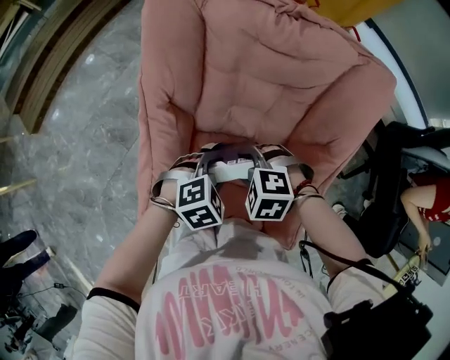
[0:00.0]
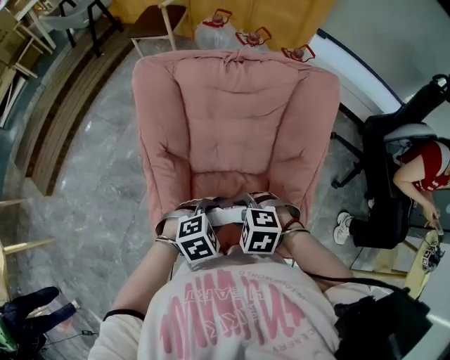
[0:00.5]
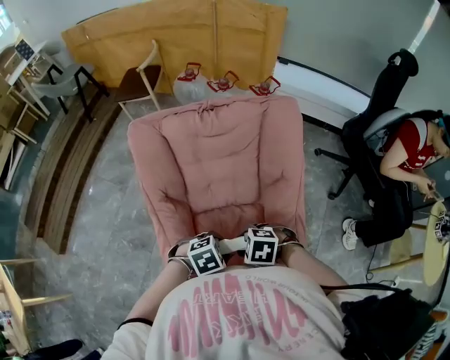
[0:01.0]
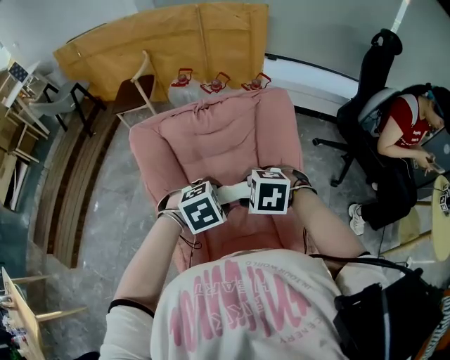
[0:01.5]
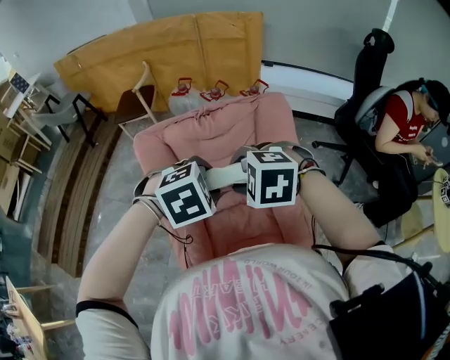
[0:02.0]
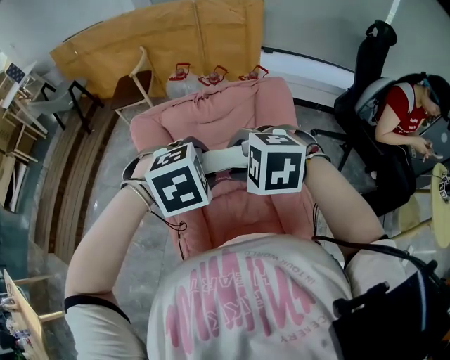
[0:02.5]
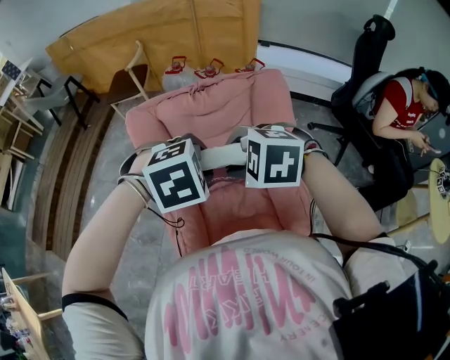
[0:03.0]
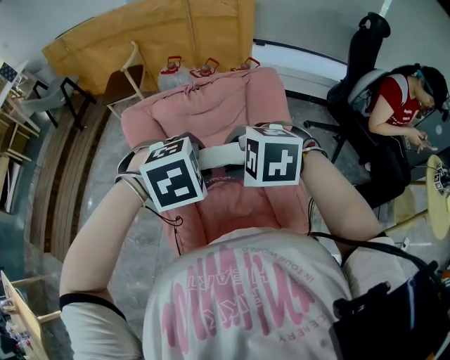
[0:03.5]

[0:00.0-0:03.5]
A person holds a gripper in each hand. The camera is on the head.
0:00.0 to 0:02.0: The grippers both shift upward by some 25 cm. The right gripper swivels approximately 20 degrees; the left gripper changes its angle by some 30 degrees.
0:02.0 to 0:03.5: The grippers move only a little.

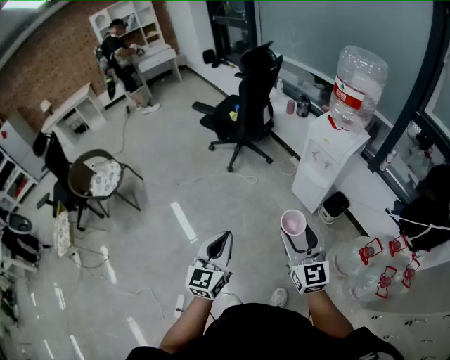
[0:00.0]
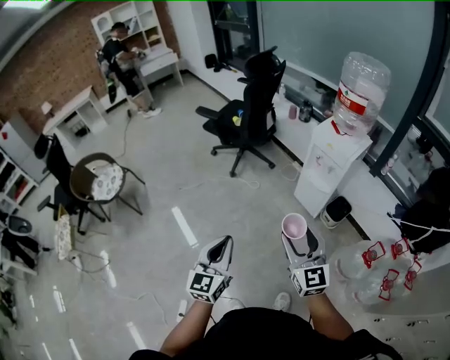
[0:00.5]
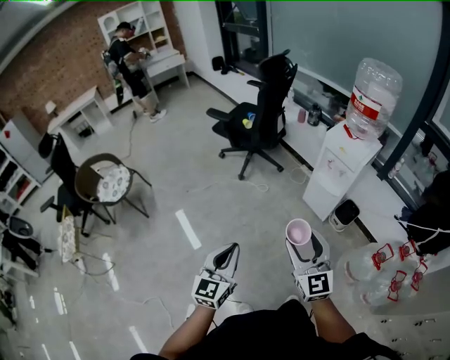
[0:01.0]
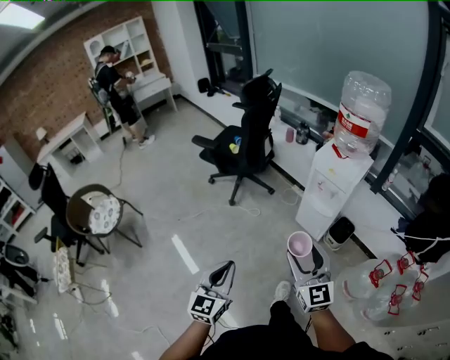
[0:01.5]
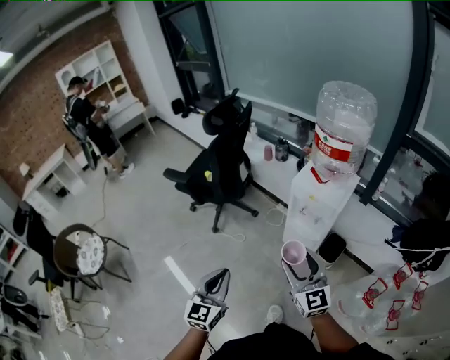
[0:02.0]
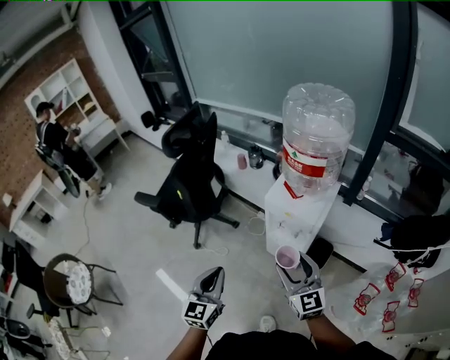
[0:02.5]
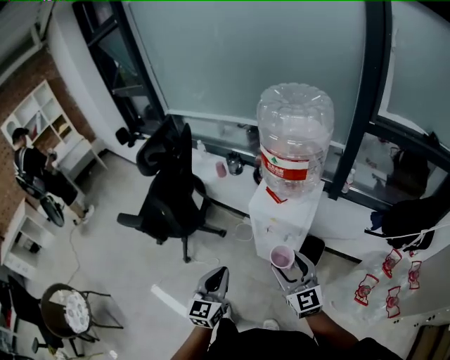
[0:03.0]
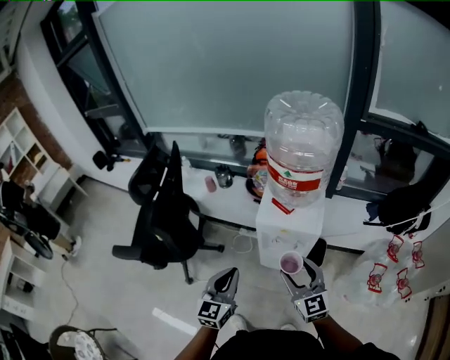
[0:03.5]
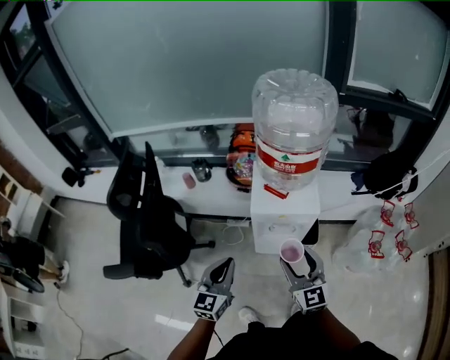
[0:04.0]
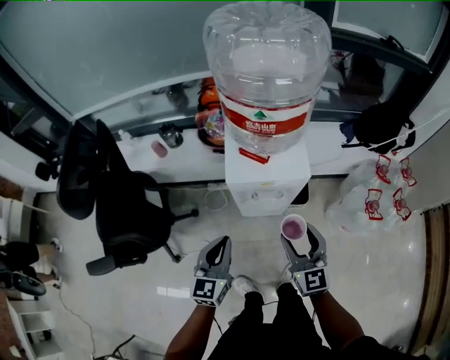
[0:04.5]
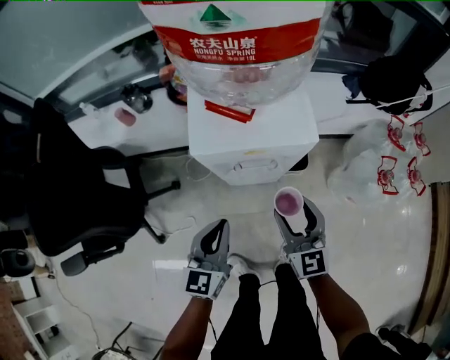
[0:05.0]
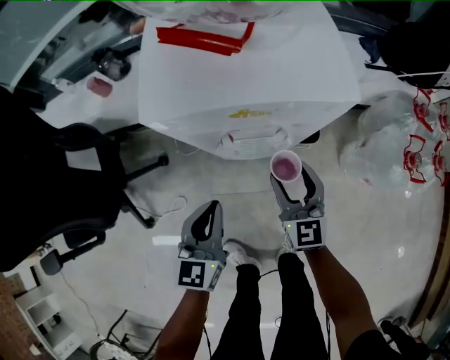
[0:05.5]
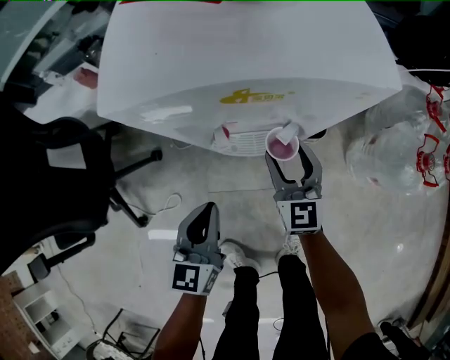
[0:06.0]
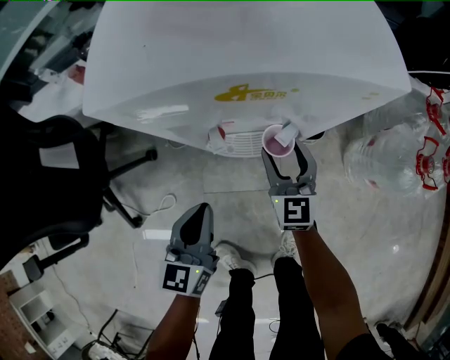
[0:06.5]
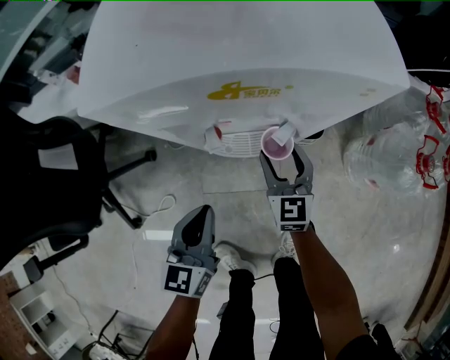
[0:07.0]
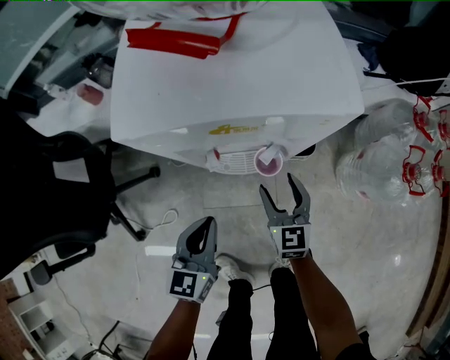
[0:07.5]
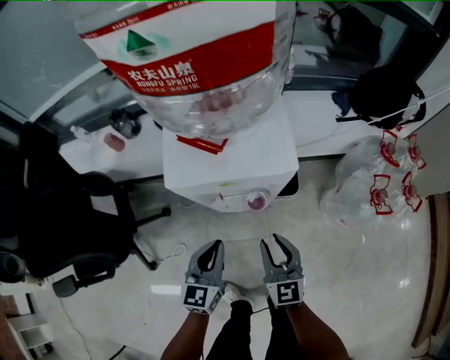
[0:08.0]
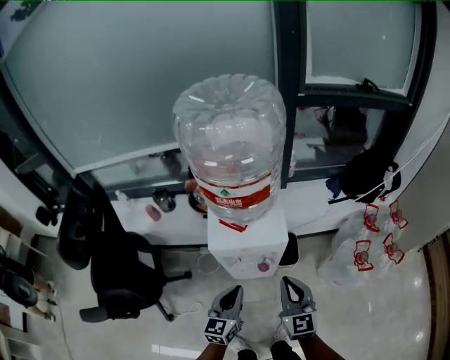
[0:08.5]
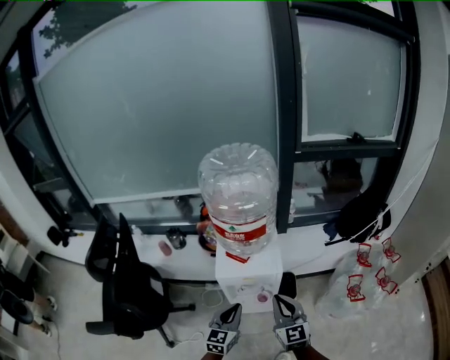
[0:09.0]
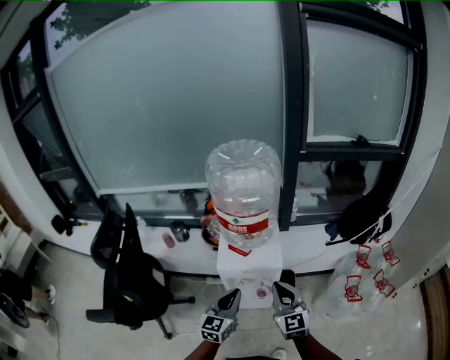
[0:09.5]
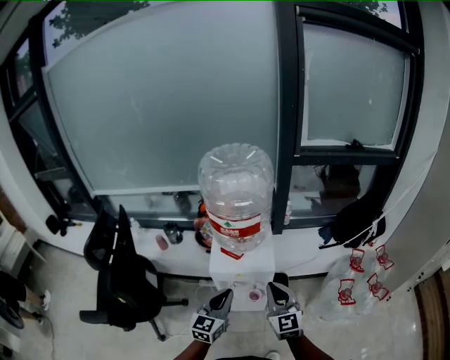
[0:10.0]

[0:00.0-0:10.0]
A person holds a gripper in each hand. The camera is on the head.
0:00.0 to 0:02.0: Both grippers move forward, roughly 20 cm.
0:02.0 to 0:04.0: The left gripper changes place by roughly 35 cm, and turns by about 40 degrees. Meanwhile the right gripper changes place by approximately 20 cm, and swivels roughly 40 degrees.
0:04.0 to 0:06.0: The left gripper heads downward, covering approximately 35 cm, while the right gripper goes about 40 cm downward and forward.
0:06.0 to 0:08.0: The right gripper goes about 20 cm upward and backward, and closes its fingers. The left gripper heads upward, covering approximately 10 cm.
0:08.0 to 0:10.0: Both grippers move upward, roughly 30 cm. The right gripper closes.

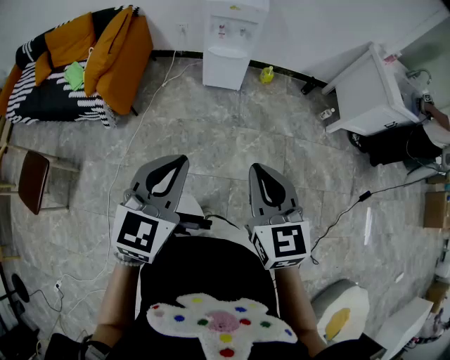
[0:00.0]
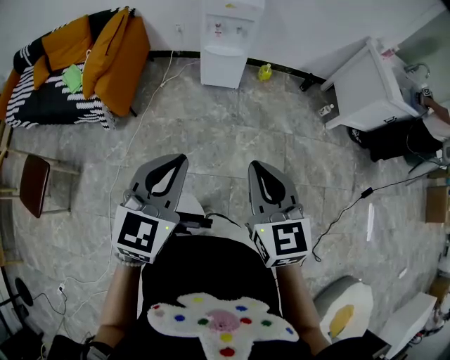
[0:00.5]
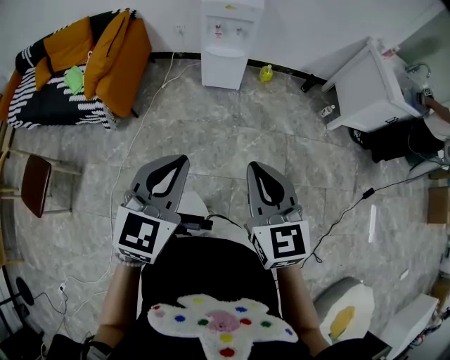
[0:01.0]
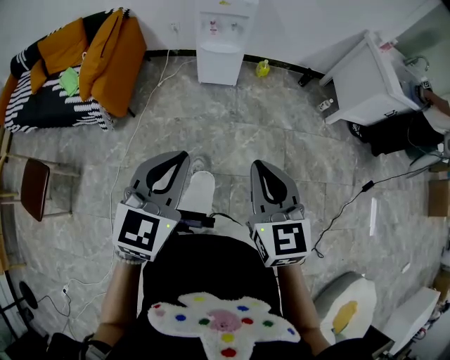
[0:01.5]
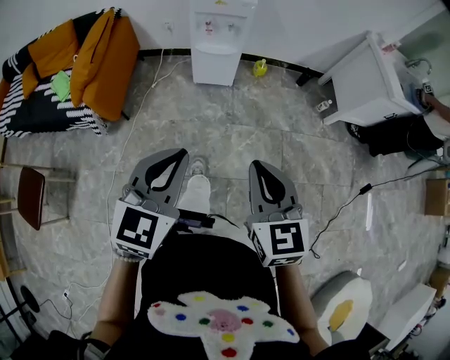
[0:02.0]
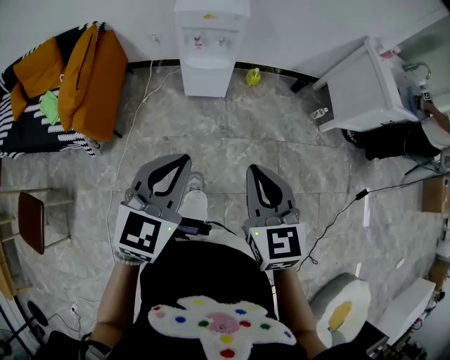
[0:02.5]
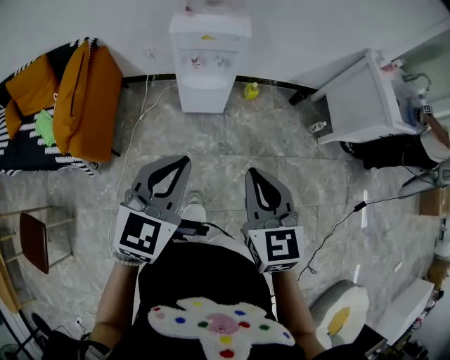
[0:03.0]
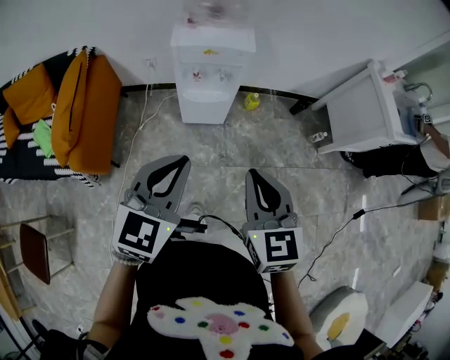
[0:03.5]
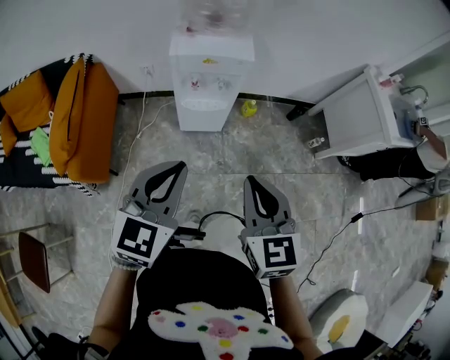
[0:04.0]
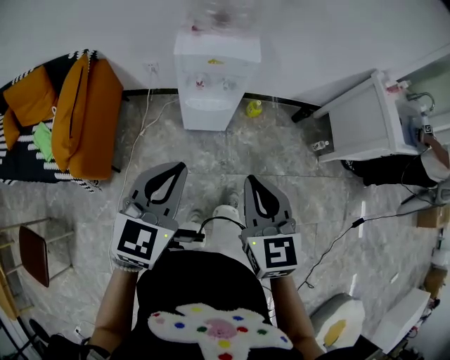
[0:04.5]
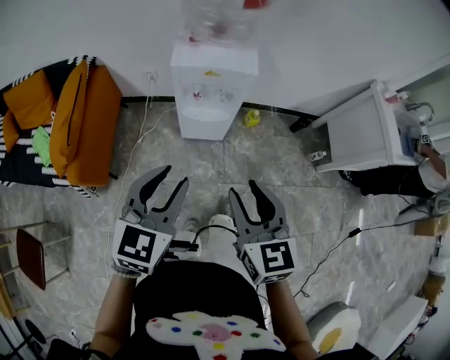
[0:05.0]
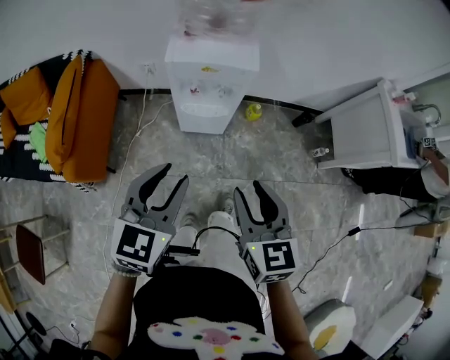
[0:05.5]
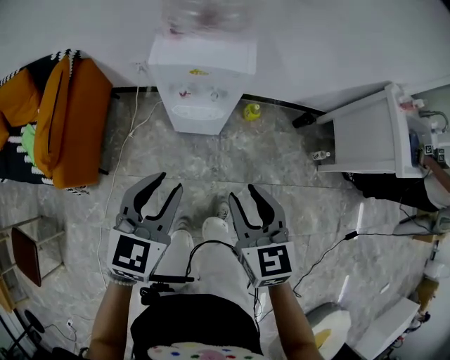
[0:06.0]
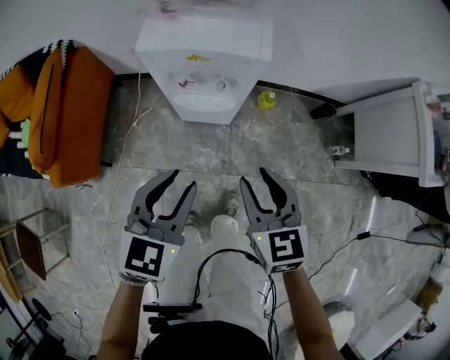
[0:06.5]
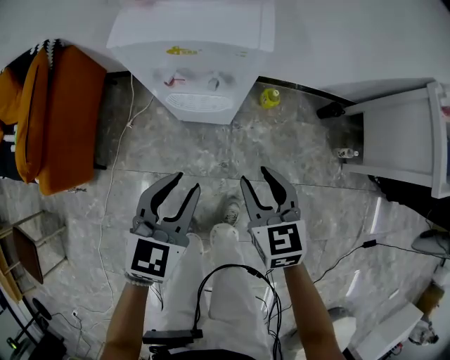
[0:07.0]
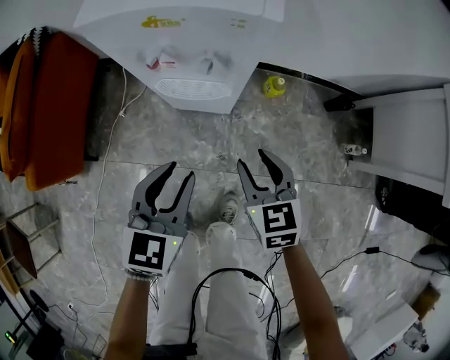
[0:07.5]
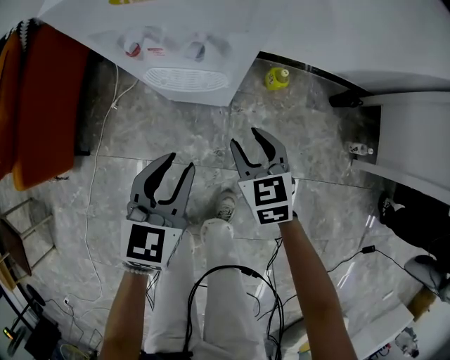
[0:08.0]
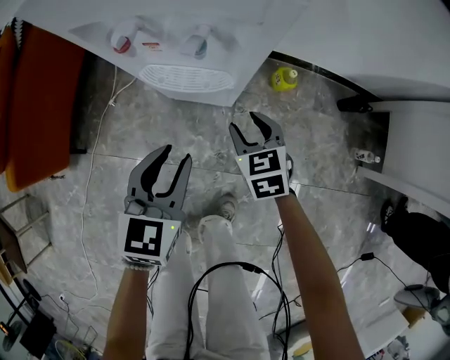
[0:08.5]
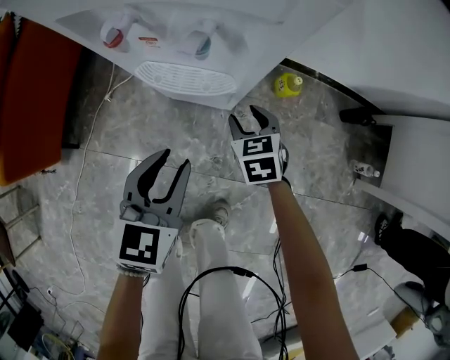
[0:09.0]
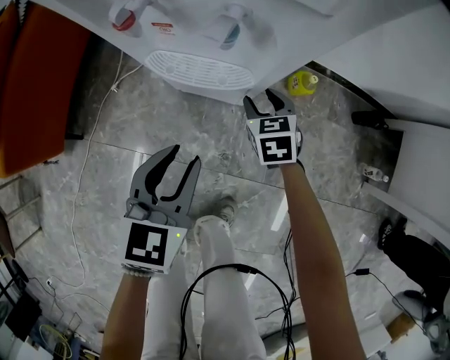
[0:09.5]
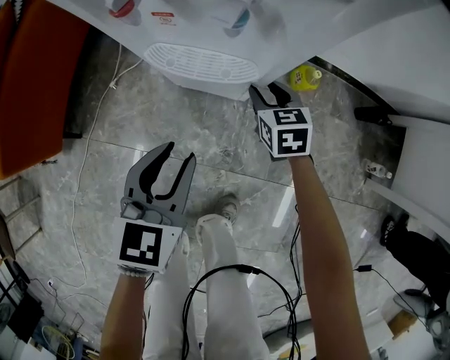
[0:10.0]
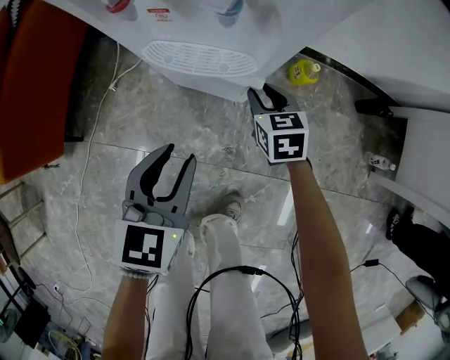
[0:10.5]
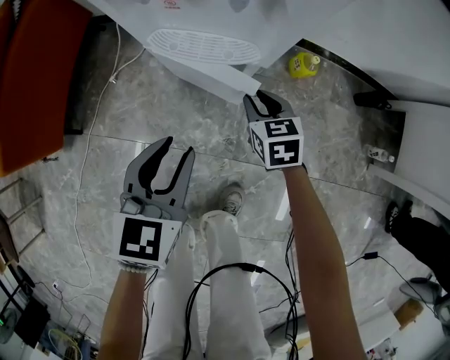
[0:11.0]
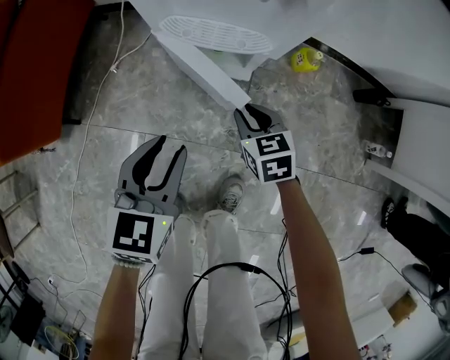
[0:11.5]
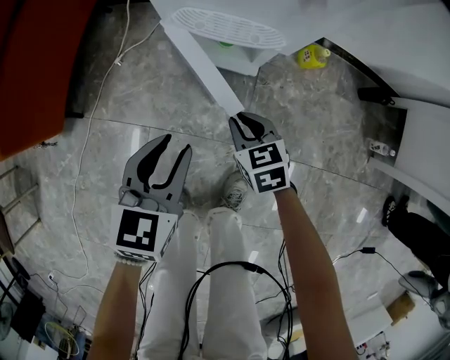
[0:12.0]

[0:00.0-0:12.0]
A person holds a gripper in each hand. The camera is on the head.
0:00.0 to 0:02.0: Both grippers travel together forward, roughly 5 cm.
0:02.0 to 0:04.0: The two grippers go approximately 30 cm forward.
0:04.0 to 0:06.0: Both grippers travel together forward and downward, approximately 10 cm. The right gripper opens up. The left gripper opens its fingers.
0:06.0 to 0:08.0: The right gripper goes some 40 cm downward and forward; the left gripper moves downward, approximately 30 cm.
0:08.0 to 0:10.0: The left gripper is displaced downward by about 10 cm, while the right gripper travels downward and forward by about 20 cm.
0:10.0 to 0:12.0: The right gripper shifts about 20 cm backward and to the left, and closes its fingers; the left gripper moves backward and to the left, roughly 10 cm.

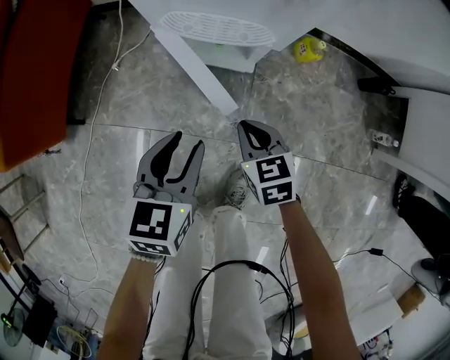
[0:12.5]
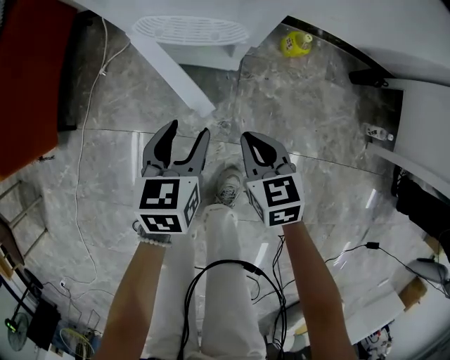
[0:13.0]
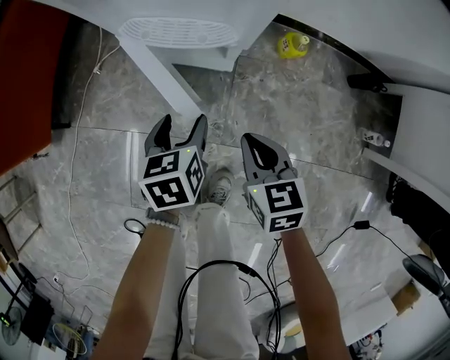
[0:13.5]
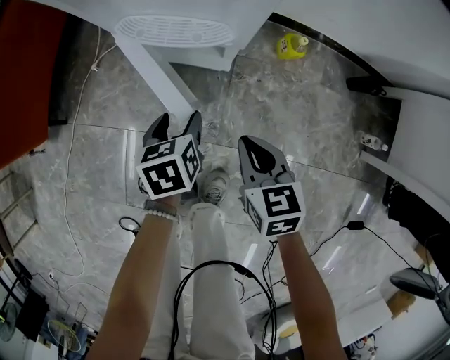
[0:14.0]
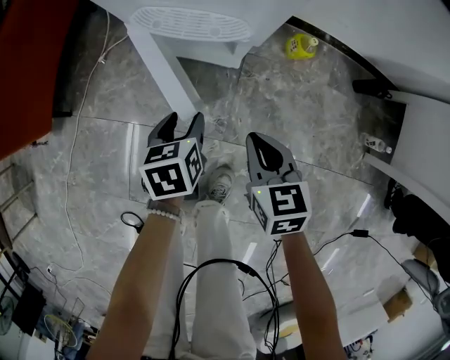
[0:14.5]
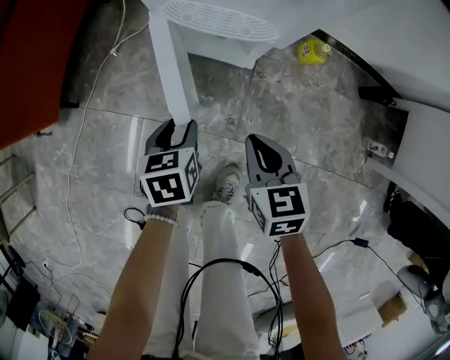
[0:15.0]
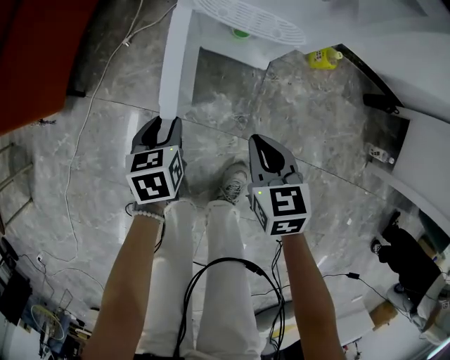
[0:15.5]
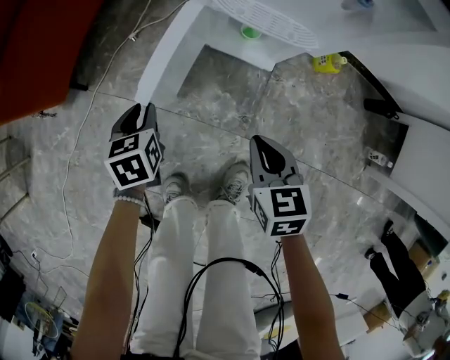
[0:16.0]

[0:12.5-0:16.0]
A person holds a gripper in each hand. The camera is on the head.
0:12.5 to 0:14.5: The left gripper moves downward, some 10 cm, and rotates roughly 30 degrees, while the right gripper travels to the right by roughly 10 cm.
0:14.5 to 0:16.0: The left gripper shifts about 25 cm to the left, and closes its fingers, while the right gripper shifts roughly 10 cm to the left.
